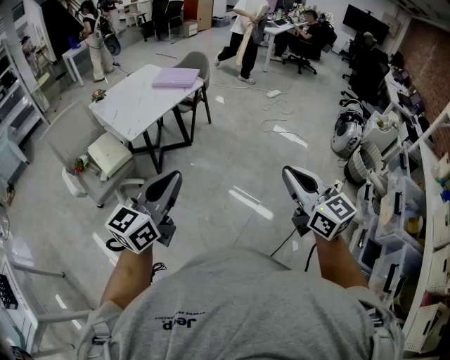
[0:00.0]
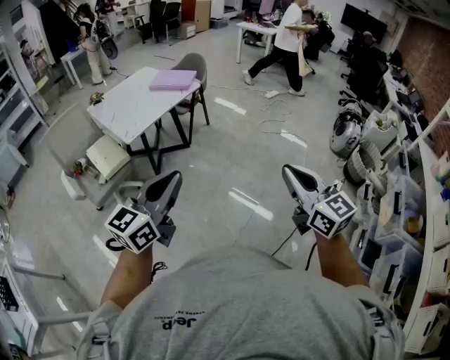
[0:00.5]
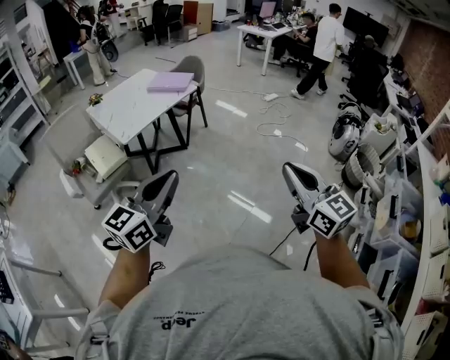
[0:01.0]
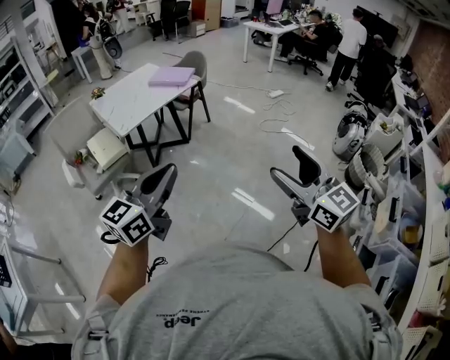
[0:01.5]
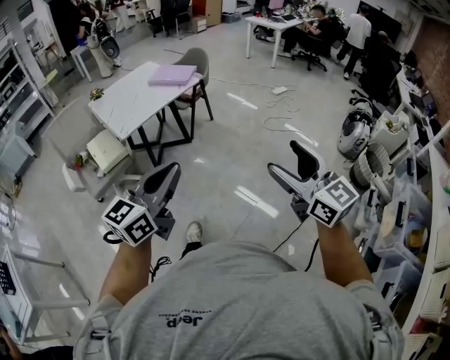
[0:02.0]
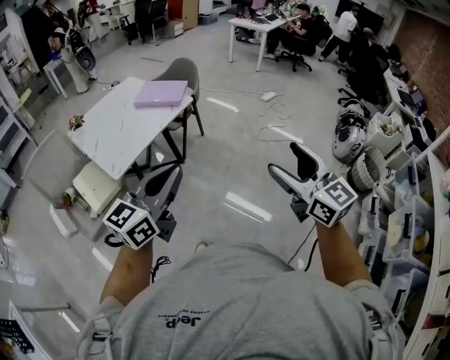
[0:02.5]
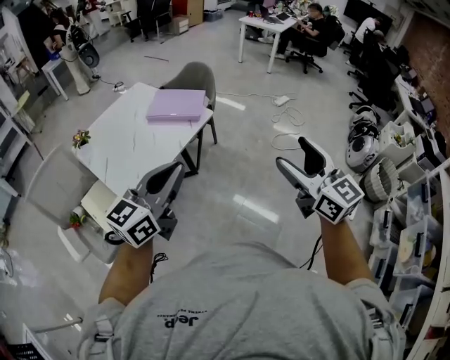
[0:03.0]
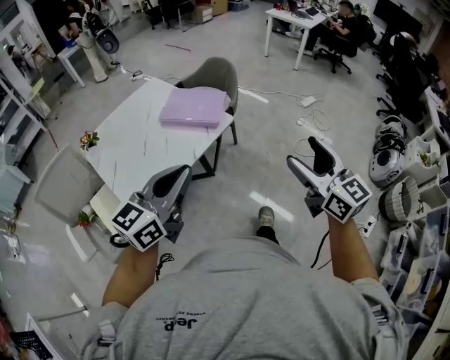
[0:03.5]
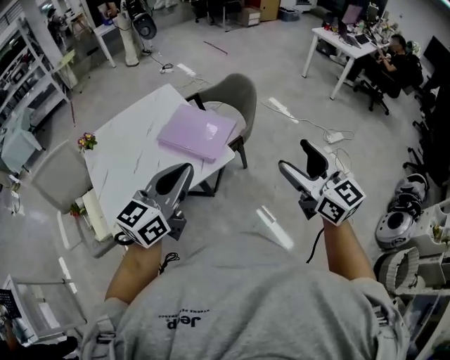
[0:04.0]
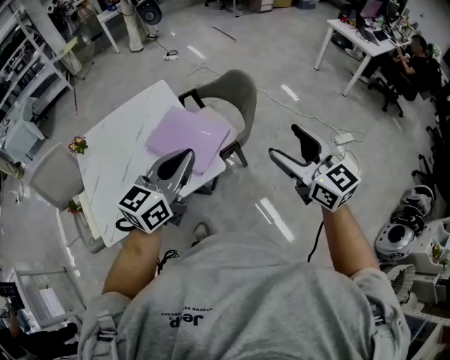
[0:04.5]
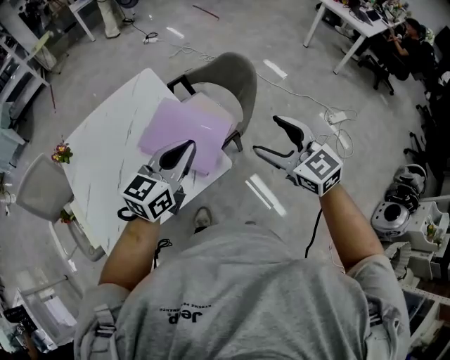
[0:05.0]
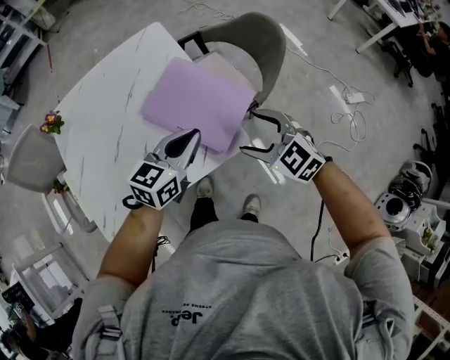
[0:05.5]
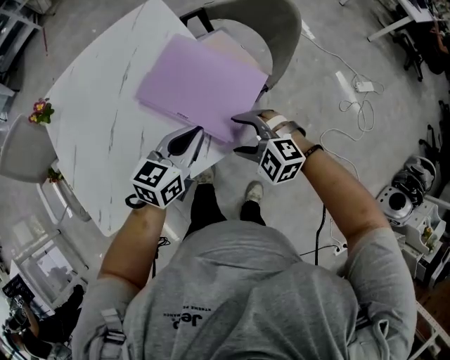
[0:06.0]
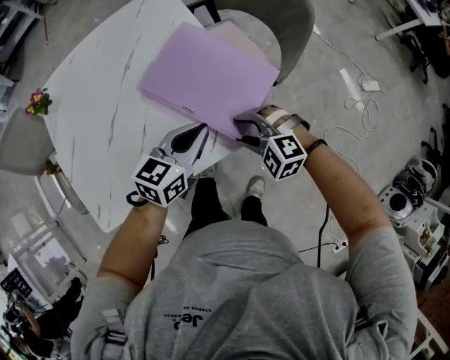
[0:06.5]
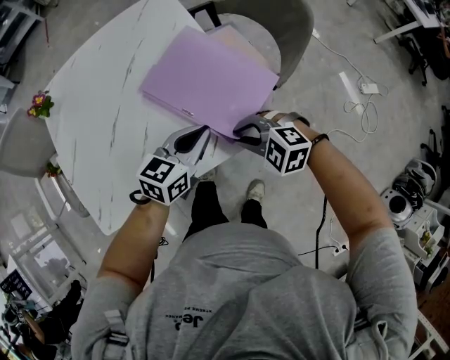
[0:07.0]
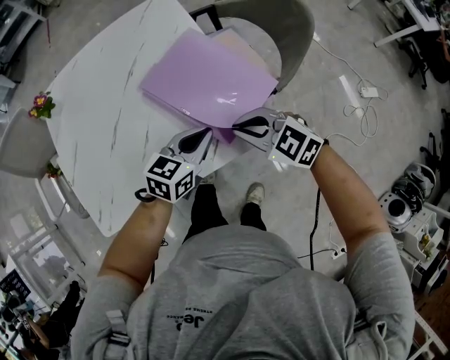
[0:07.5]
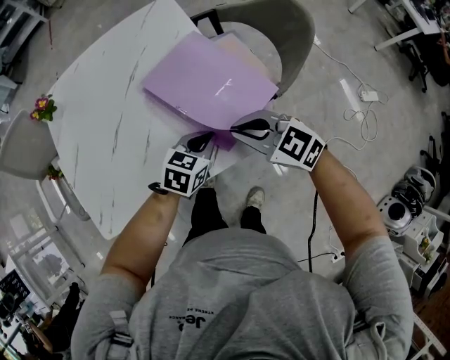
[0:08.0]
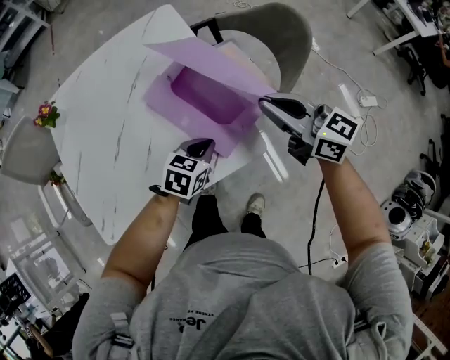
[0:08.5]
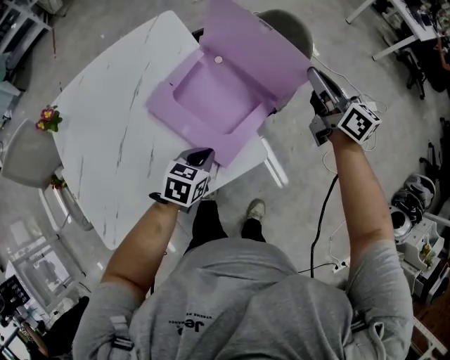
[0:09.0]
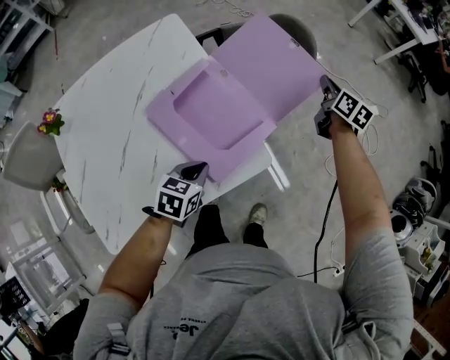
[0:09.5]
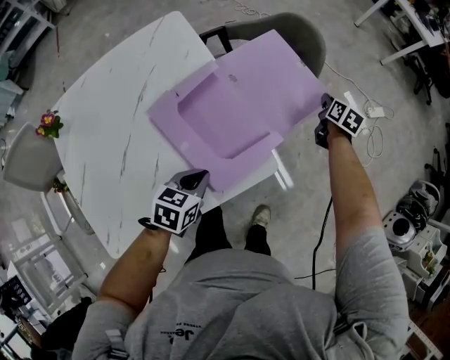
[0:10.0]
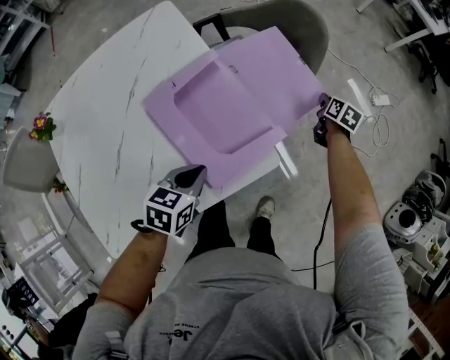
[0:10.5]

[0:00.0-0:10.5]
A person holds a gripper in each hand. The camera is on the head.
0:00.0 to 0:02.0: The left gripper shifts some 10 cm to the right. The right gripper goes about 10 cm to the right and forward, and opens.
0:02.0 to 0:04.0: The two grippers travel together, forward, about 80 cm.
0:04.0 to 0:06.5: The left gripper goes about 40 cm downward and forward, and swivels about 30 degrees. The right gripper goes roughly 50 cm downward, forward and to the left, and tilts its fingers approximately 50 degrees downward.
0:06.5 to 0:08.5: The right gripper shifts some 20 cm upward and forward, tips its fingers upward by about 40 degrees, and closes its fingers. The left gripper heads downward, covering about 10 cm, and swivels approximately 20 degrees.
0:08.5 to 0:10.5: The left gripper changes place by roughly 5 cm. Meanwhile the right gripper travels downward by about 30 cm, and angles its fingers downward, by approximately 40 degrees.

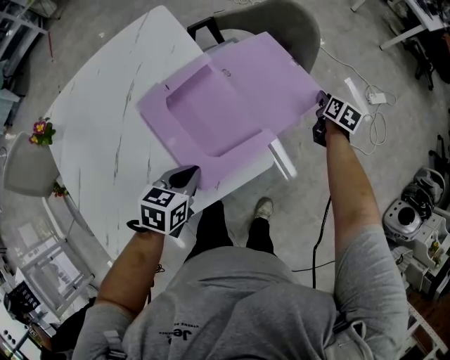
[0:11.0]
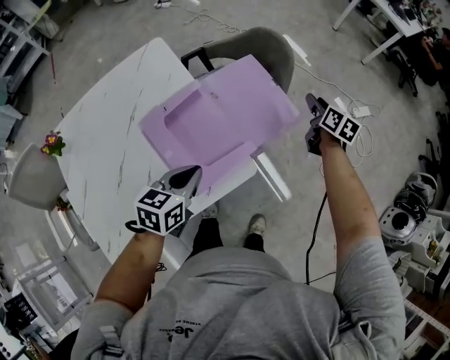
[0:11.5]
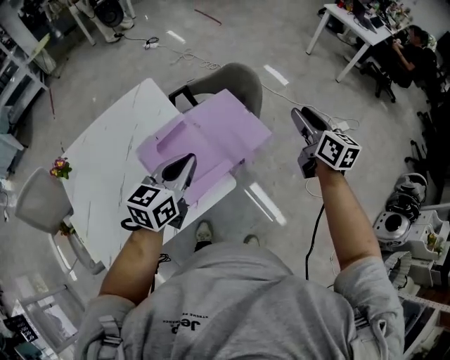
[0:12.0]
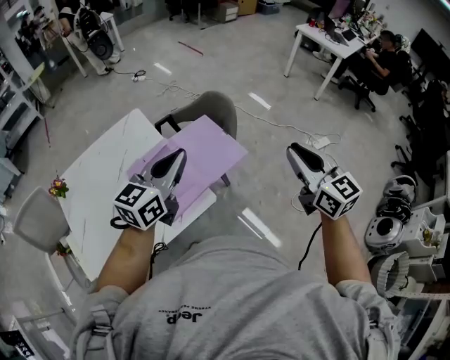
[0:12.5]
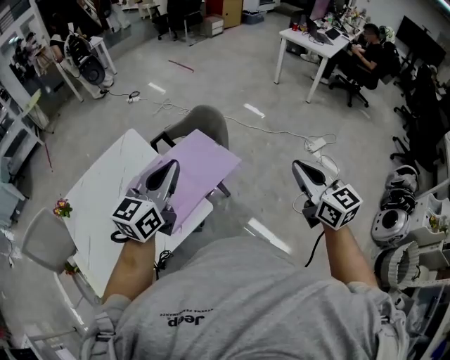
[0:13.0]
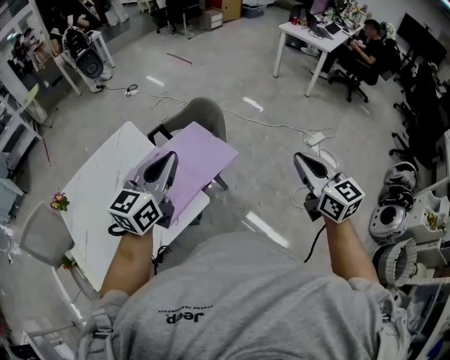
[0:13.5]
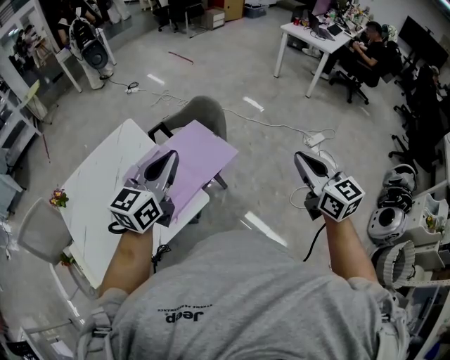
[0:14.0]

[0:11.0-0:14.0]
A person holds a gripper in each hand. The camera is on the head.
0:11.0 to 0:12.5: The left gripper shifts about 35 cm upward, and tilts its fingers approximately 40 degrees upward. Meanwhile the right gripper moves upward and backward, about 50 cm, and angles its fingers upward, by approximately 40 degrees.
0:12.5 to 0:14.0: The right gripper travels to the right by about 10 cm.

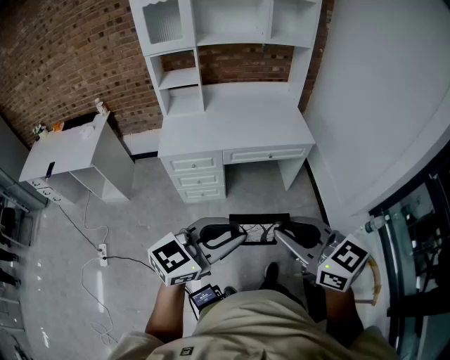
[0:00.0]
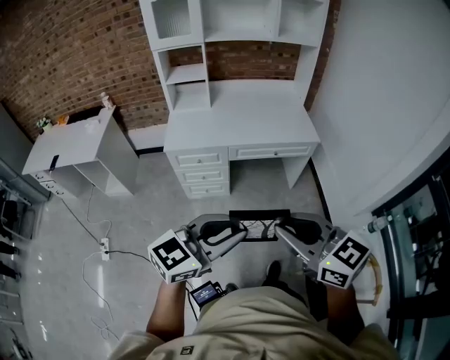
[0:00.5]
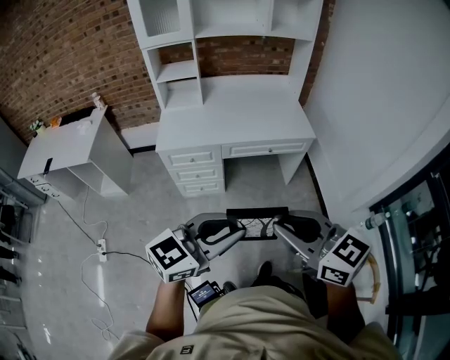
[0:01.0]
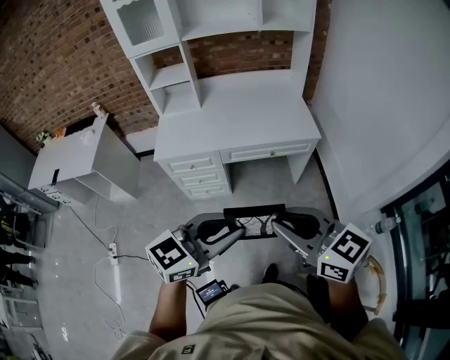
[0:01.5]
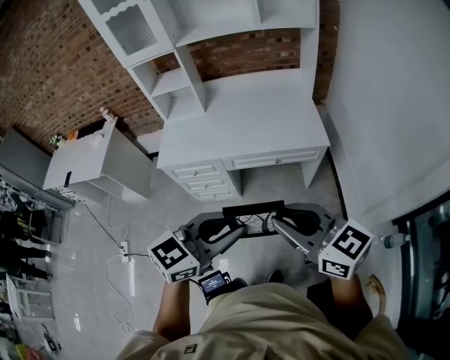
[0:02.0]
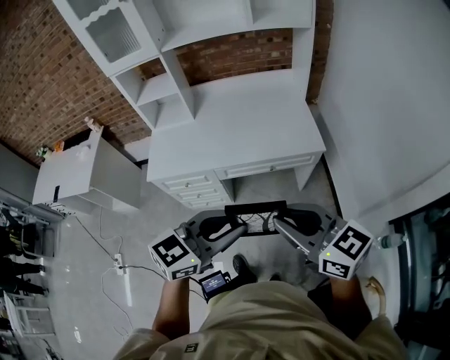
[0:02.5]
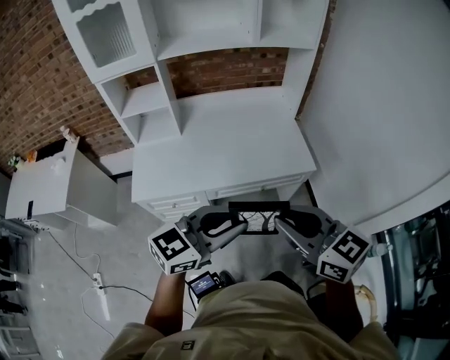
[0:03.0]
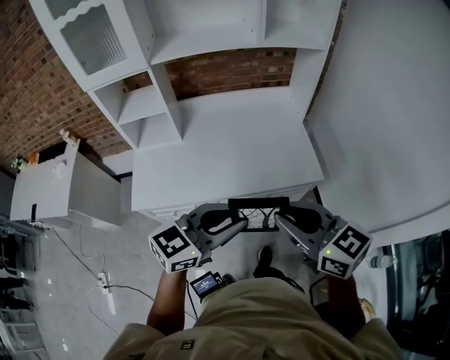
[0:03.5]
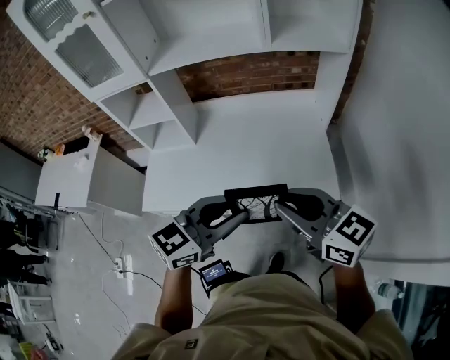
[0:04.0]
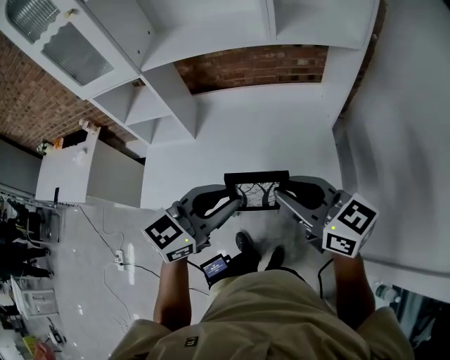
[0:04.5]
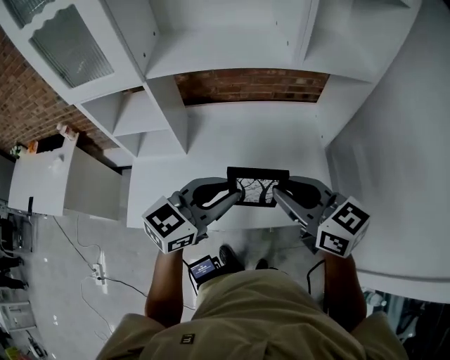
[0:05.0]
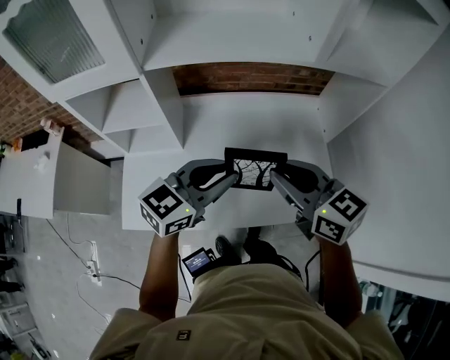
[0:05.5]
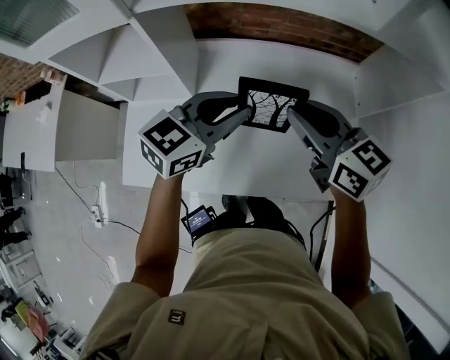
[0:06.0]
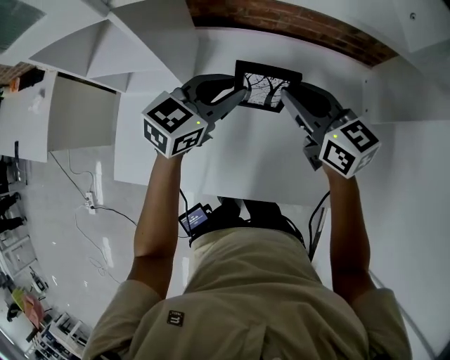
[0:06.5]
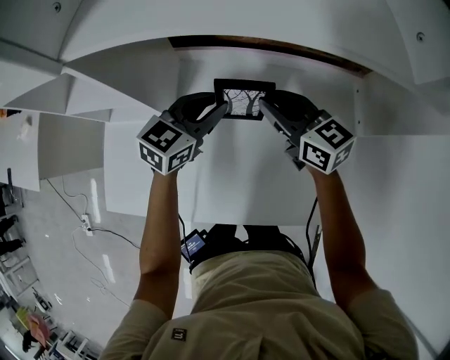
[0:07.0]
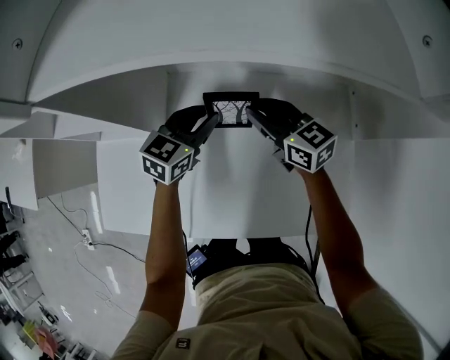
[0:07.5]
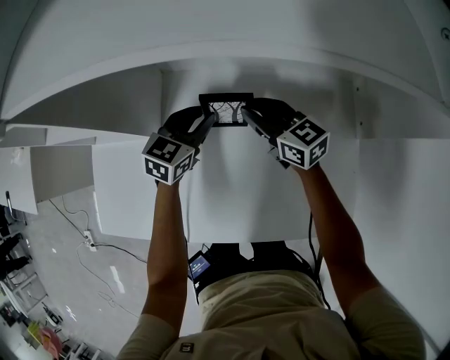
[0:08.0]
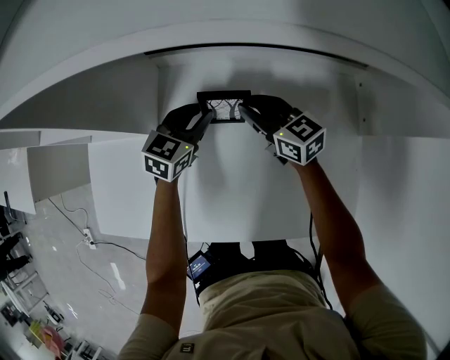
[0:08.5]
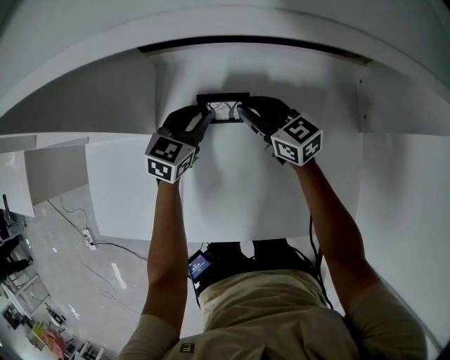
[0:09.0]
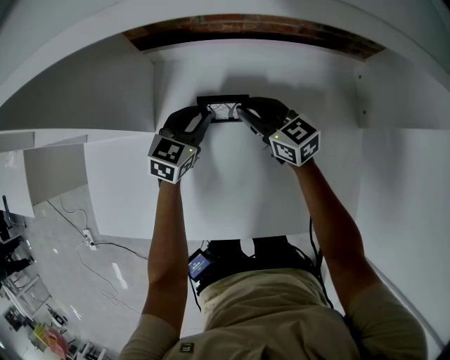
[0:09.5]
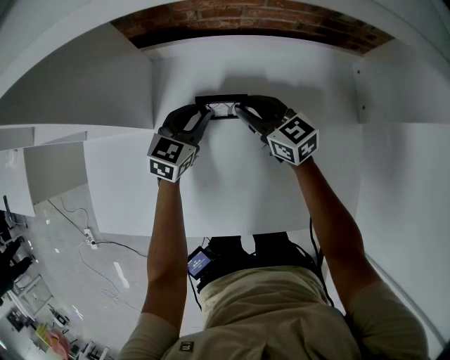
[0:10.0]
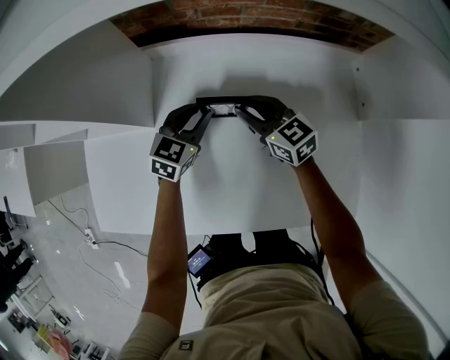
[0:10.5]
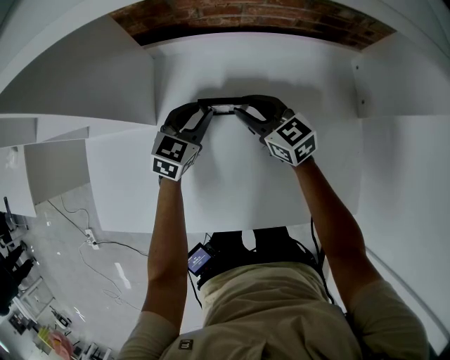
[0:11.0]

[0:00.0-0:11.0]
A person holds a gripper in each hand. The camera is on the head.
0:00.0 to 0:02.0: The grippers both shift forward and to the right by some 25 cm.
0:02.0 to 0:03.5: The grippers both shift forward by some 25 cm.
0:03.5 to 0:05.5: Both grippers move forward, some 35 cm.
0:05.5 to 0:07.5: The right gripper travels forward and downward by about 35 cm; the left gripper shifts about 35 cm downward and forward, and turns by some 20 degrees.
0:07.5 to 0:09.0: Both grippers travel together downward, some 10 cm.
0:09.0 to 0:11.0: The grippers stay close to where they were, moving slightly.

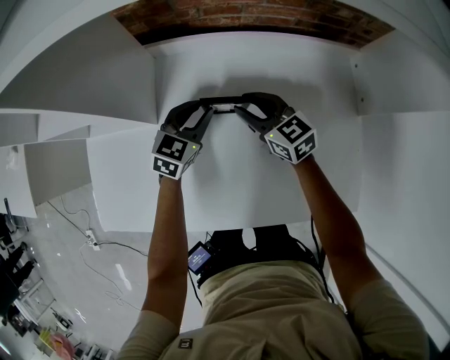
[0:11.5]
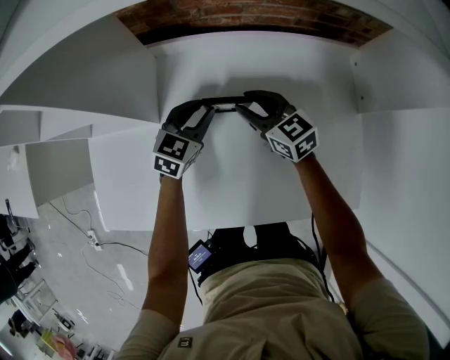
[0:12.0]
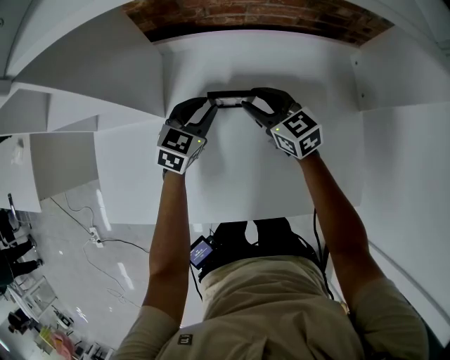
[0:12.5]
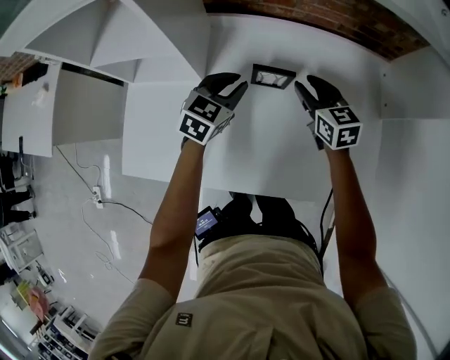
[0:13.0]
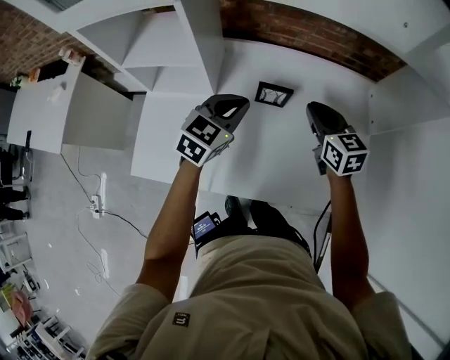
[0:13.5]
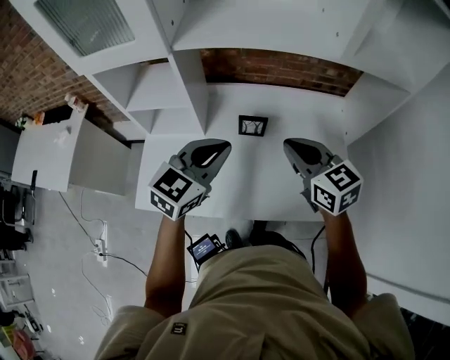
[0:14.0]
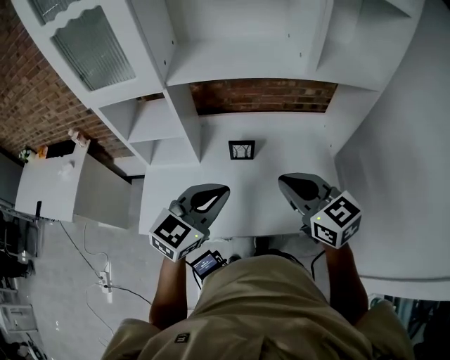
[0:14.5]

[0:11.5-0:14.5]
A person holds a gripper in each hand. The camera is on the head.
0:11.5 to 0:13.0: Both grippers travel together upward, approximately 5 cm.
0:13.0 to 0:14.5: Both grippers move upward and backward, some 40 cm. The right gripper closes, while the left gripper swivels approximately 20 degrees.
